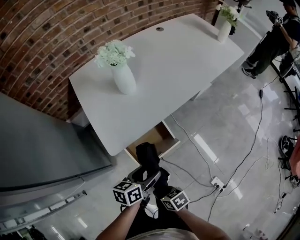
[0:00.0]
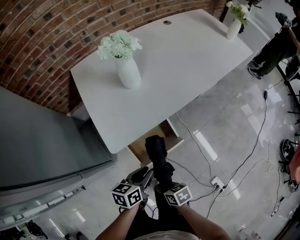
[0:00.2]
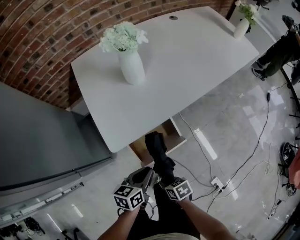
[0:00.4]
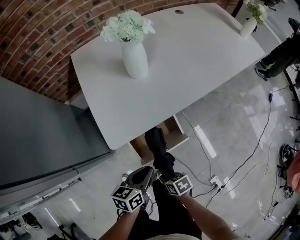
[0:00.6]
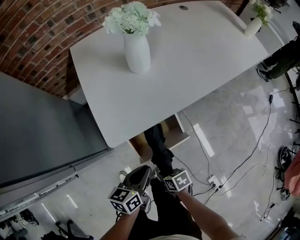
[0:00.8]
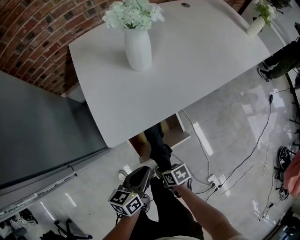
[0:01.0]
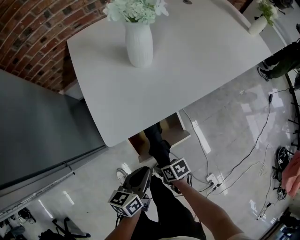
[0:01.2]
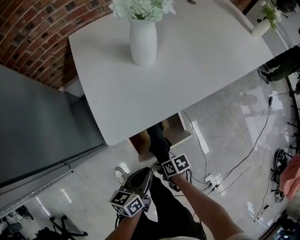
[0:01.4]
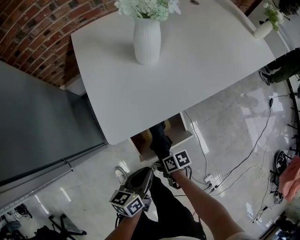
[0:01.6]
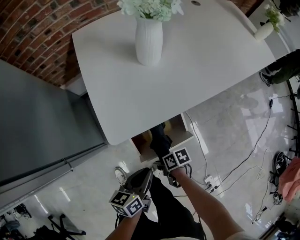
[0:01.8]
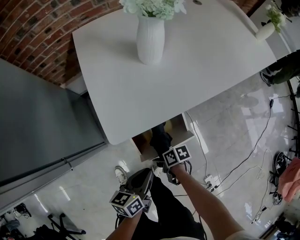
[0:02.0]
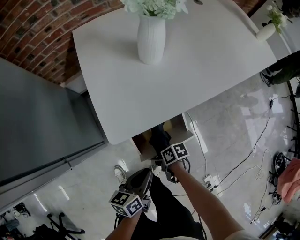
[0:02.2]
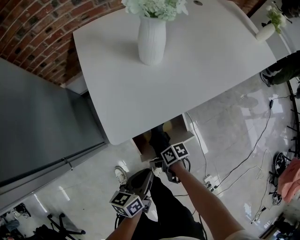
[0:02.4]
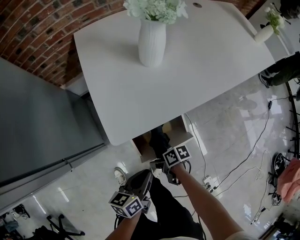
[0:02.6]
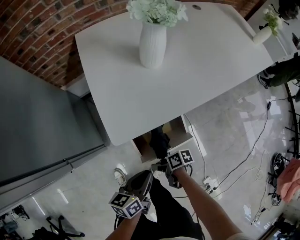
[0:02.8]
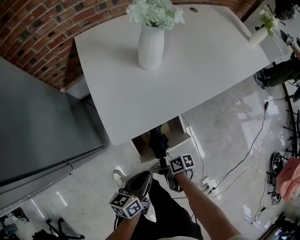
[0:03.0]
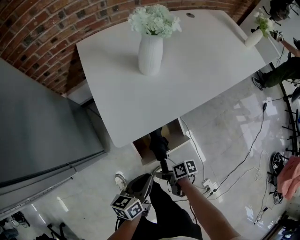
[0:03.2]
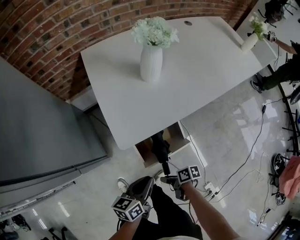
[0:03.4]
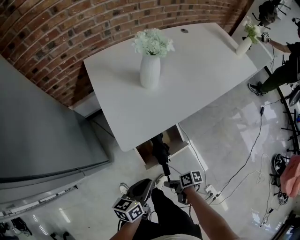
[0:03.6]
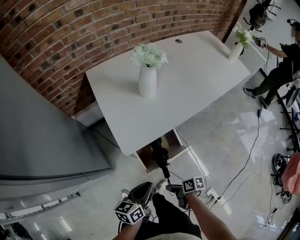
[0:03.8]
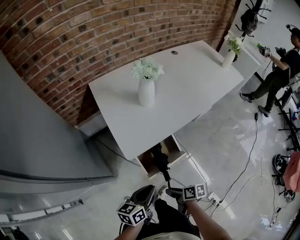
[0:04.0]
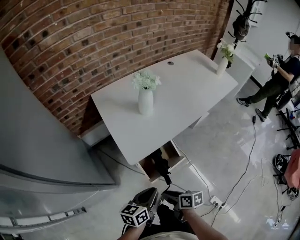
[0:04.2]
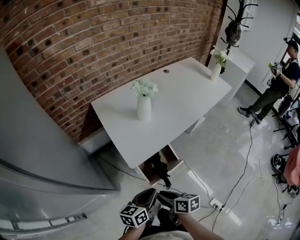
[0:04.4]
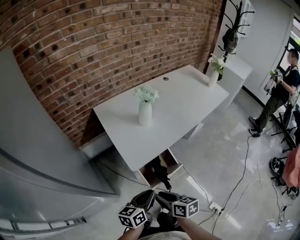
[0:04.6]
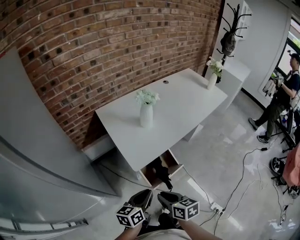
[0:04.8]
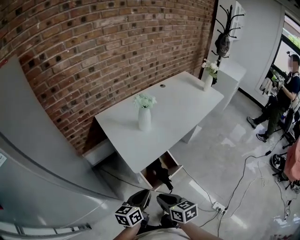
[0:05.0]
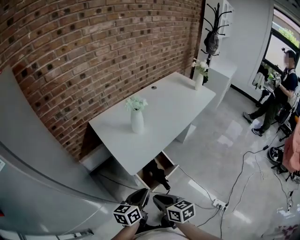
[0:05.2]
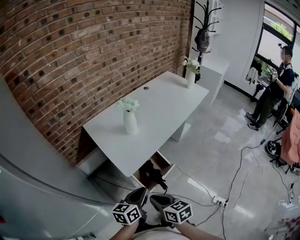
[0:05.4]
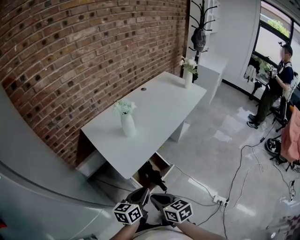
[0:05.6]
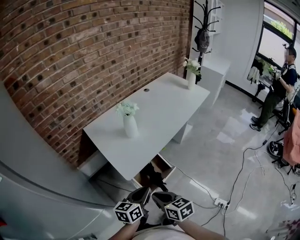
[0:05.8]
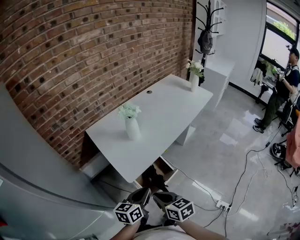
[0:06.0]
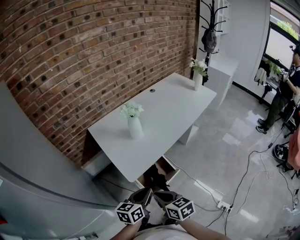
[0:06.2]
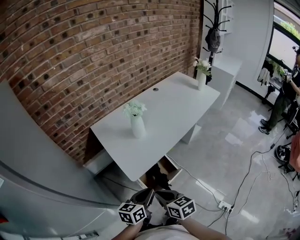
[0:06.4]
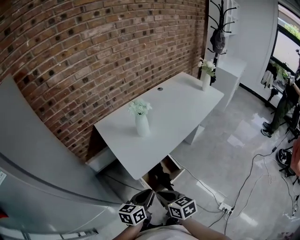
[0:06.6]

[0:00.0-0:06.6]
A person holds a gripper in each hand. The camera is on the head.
0:00.0 to 0:01.6: The right gripper shifts some 15 cm downward, and swivels some 30 degrees. The left gripper shifts some 5 cm downward, and closes.
0:01.6 to 0:03.2: The right gripper opens.
0:03.2 to 0:05.0: The right gripper travels upward by roughly 35 cm, swivels some 60 degrees, and closes its fingers; the left gripper shifts about 20 cm upward, and turns by some 20 degrees.
0:05.0 to 0:06.6: The left gripper ends up roughly 5 cm from where it was.

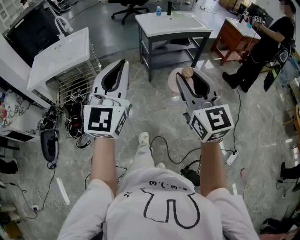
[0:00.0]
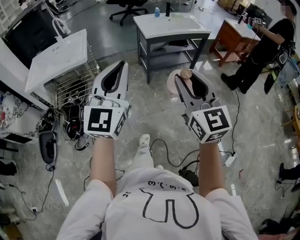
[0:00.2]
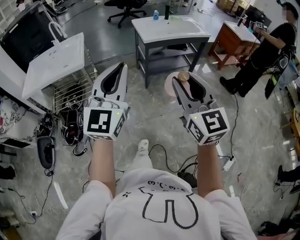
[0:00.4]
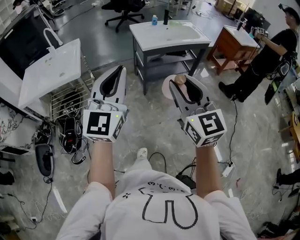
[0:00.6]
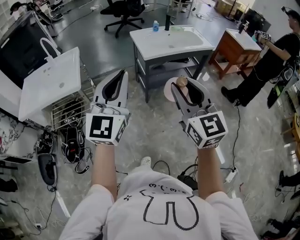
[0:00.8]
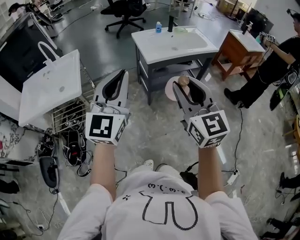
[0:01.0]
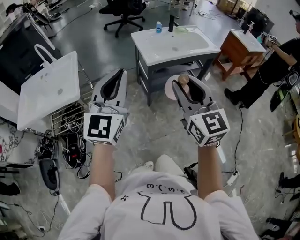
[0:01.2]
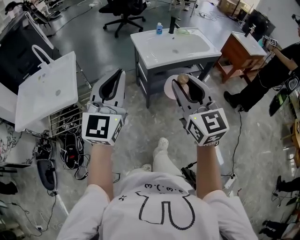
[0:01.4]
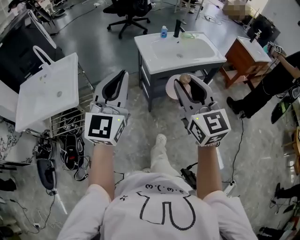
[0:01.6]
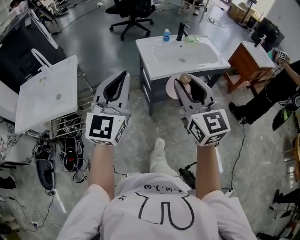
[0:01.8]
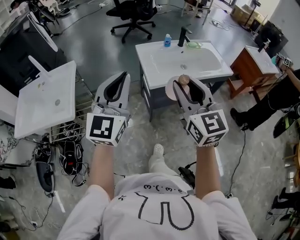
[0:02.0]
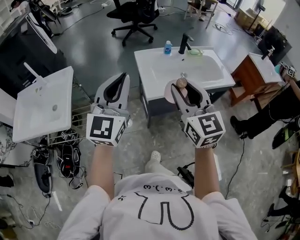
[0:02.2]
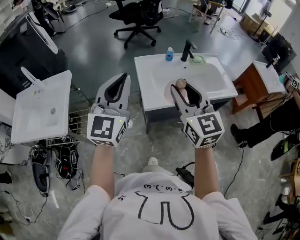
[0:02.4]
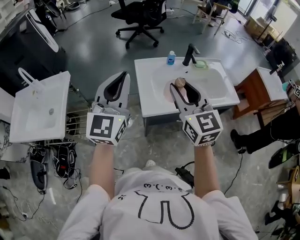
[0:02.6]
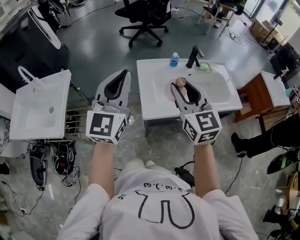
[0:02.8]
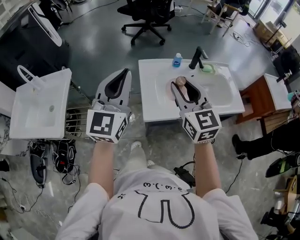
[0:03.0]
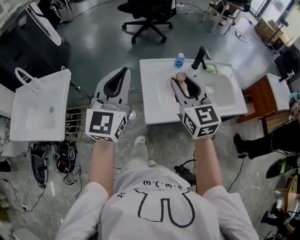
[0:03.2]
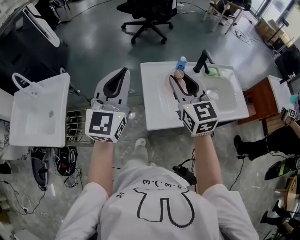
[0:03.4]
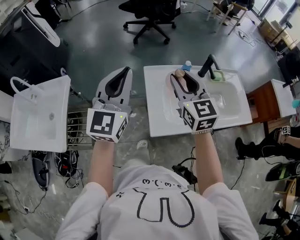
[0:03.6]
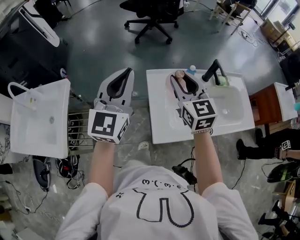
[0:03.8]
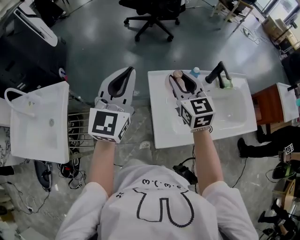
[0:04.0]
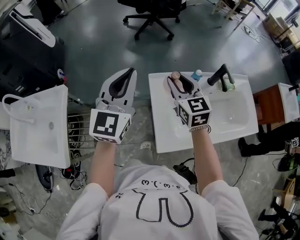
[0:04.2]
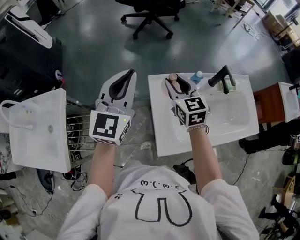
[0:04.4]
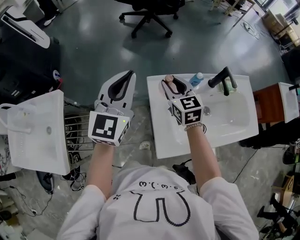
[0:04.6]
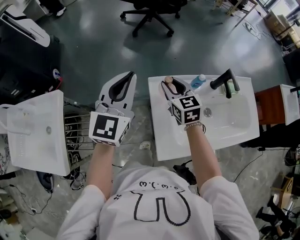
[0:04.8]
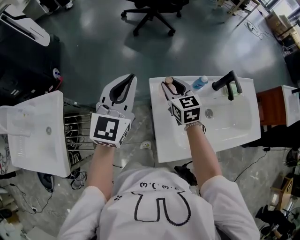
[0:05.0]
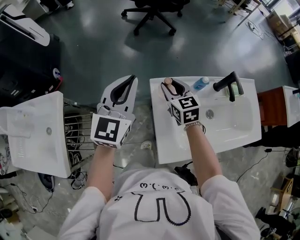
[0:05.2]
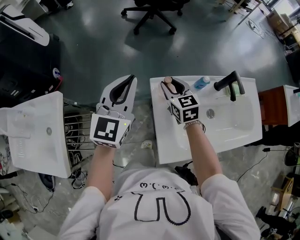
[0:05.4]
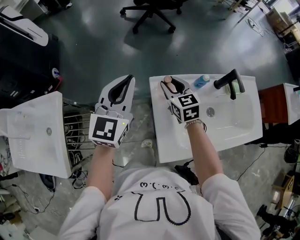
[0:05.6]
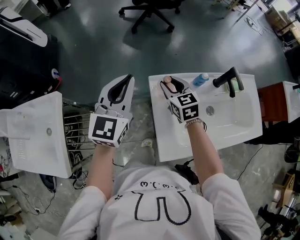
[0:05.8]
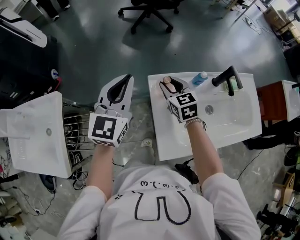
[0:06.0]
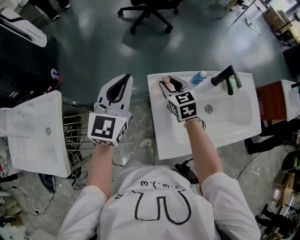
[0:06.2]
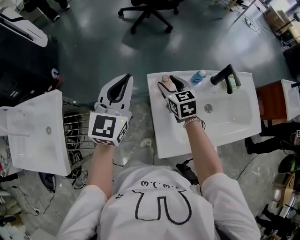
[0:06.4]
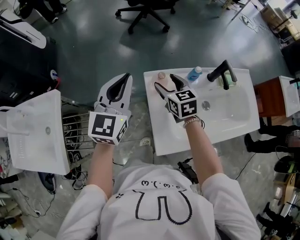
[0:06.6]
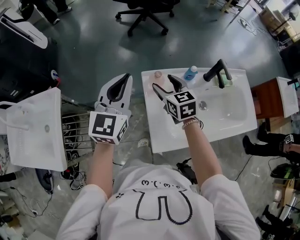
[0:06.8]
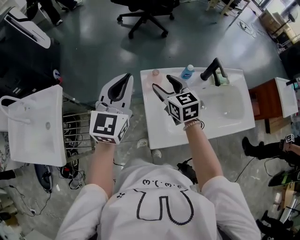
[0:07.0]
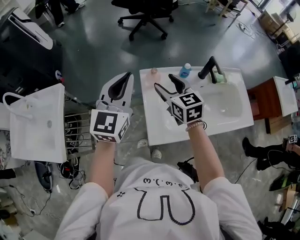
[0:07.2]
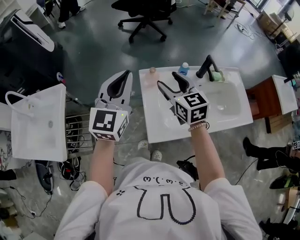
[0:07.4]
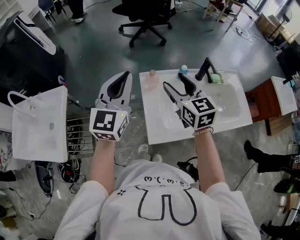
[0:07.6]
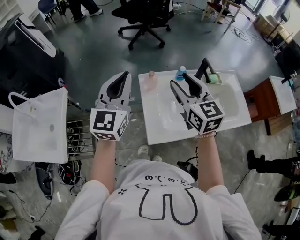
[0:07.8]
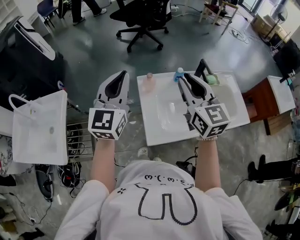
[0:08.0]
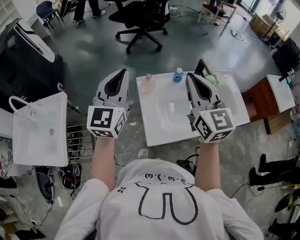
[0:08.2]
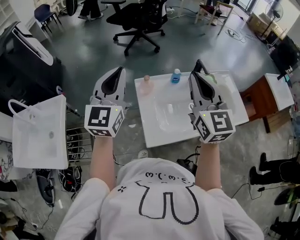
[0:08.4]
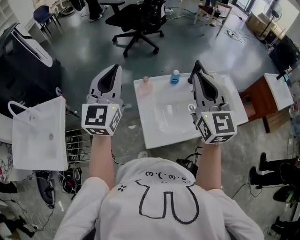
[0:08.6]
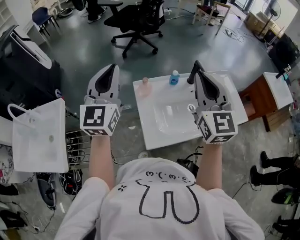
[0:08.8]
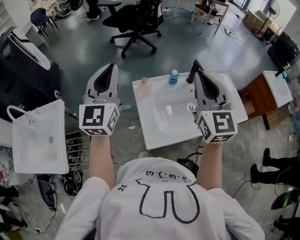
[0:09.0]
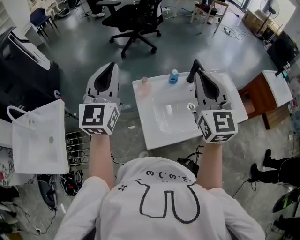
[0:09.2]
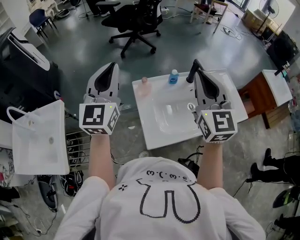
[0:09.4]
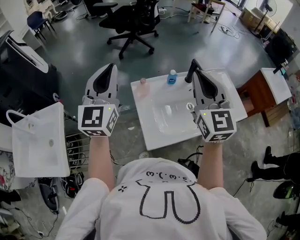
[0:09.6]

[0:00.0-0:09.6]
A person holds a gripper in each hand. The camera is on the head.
0:00.0 to 0:01.6: Both grippers move forward, approximately 40 cm.
0:01.6 to 0:03.2: Both grippers travel together forward, roughly 40 cm.
0:03.2 to 0:04.8: The right gripper travels forward and downward by roughly 30 cm, and changes its angle by approximately 20 degrees. Meanwhile the left gripper travels forward by roughly 25 cm.
0:04.8 to 0:06.4: There are only small adjustments of the grippers.
0:06.4 to 0:08.0: The right gripper heads upward and backward, covering roughly 30 cm, rotates about 30 degrees, and closes up. Meanwhile the left gripper is displaced backward and upward by approximately 15 cm.
0:08.0 to 0:09.6: The left gripper shifts by some 5 cm; the right gripper heads upward, covering about 5 cm.

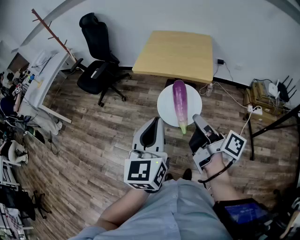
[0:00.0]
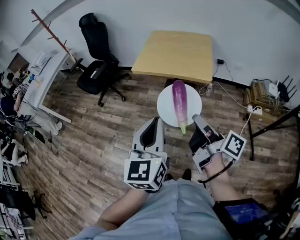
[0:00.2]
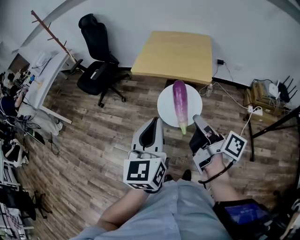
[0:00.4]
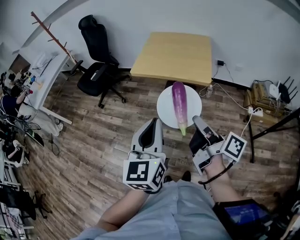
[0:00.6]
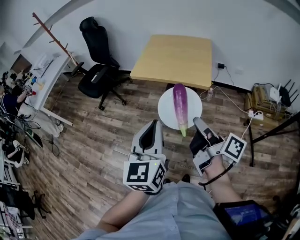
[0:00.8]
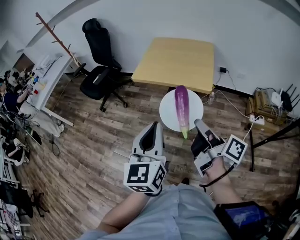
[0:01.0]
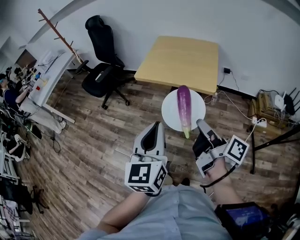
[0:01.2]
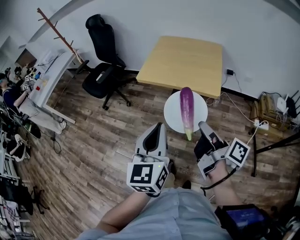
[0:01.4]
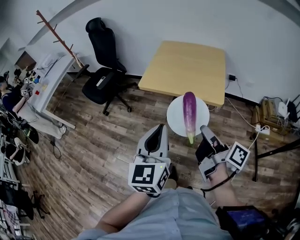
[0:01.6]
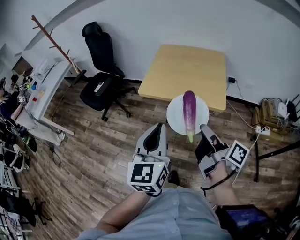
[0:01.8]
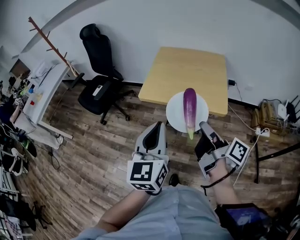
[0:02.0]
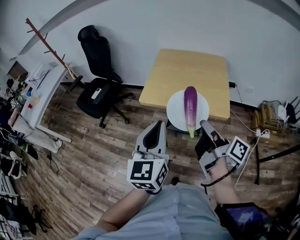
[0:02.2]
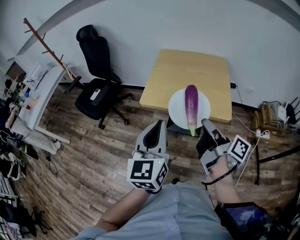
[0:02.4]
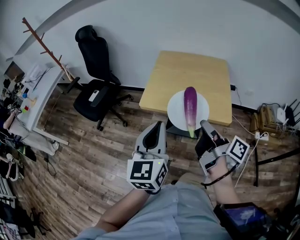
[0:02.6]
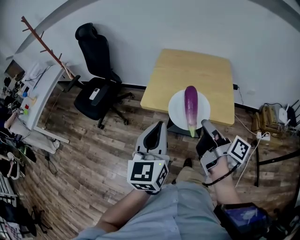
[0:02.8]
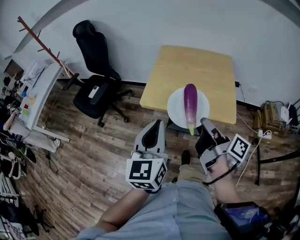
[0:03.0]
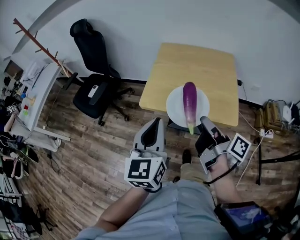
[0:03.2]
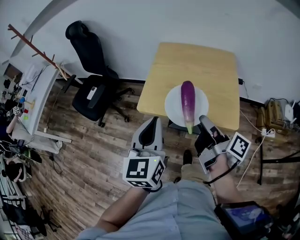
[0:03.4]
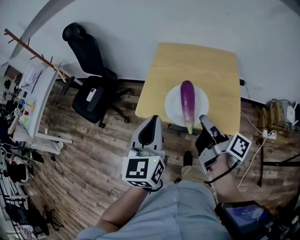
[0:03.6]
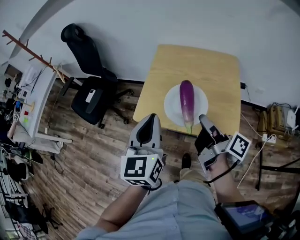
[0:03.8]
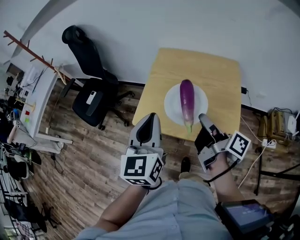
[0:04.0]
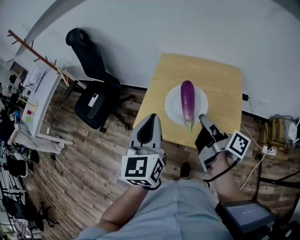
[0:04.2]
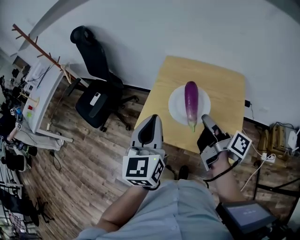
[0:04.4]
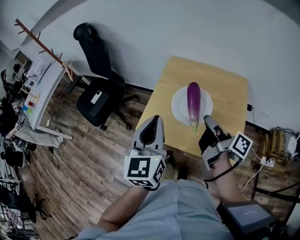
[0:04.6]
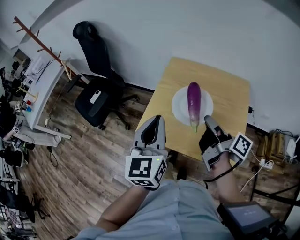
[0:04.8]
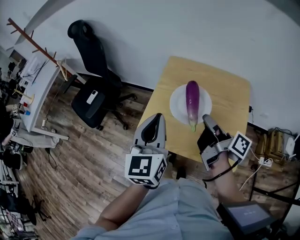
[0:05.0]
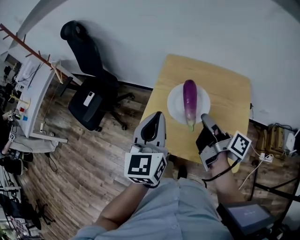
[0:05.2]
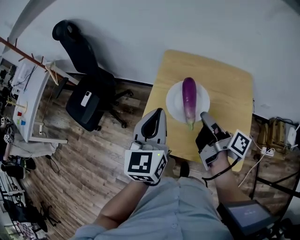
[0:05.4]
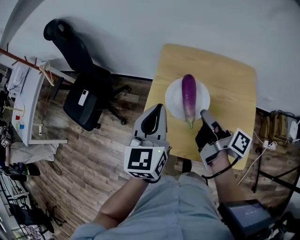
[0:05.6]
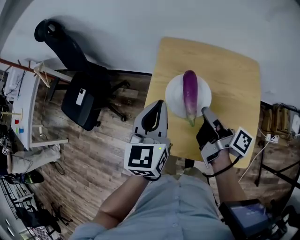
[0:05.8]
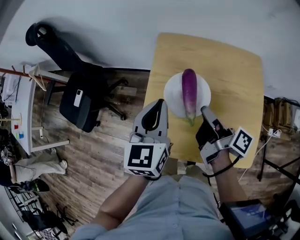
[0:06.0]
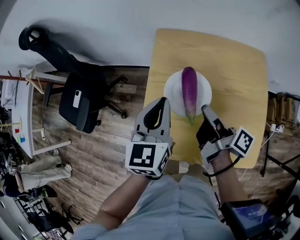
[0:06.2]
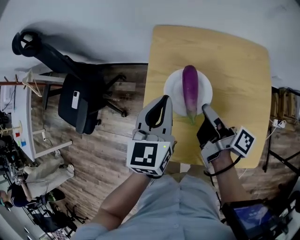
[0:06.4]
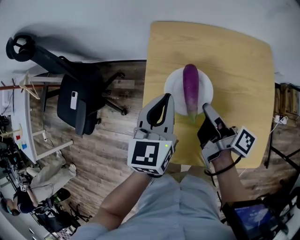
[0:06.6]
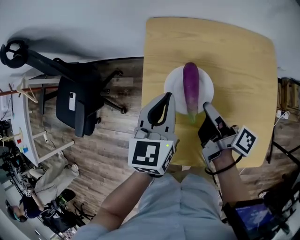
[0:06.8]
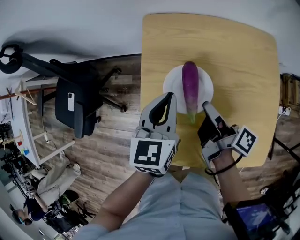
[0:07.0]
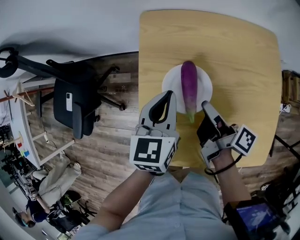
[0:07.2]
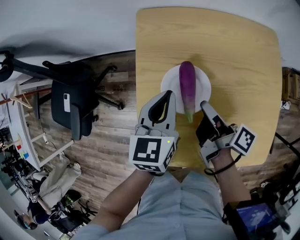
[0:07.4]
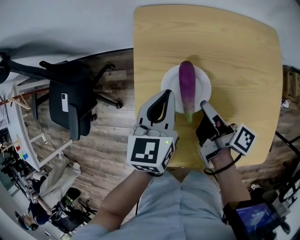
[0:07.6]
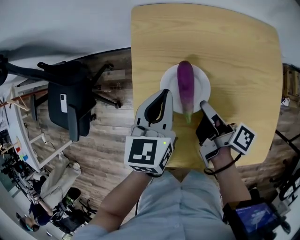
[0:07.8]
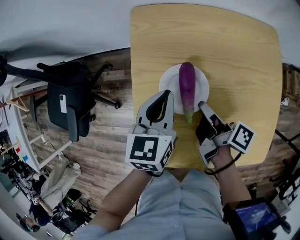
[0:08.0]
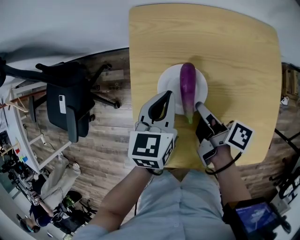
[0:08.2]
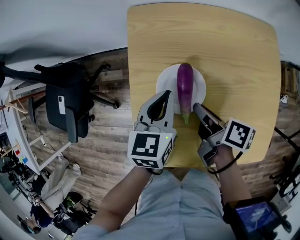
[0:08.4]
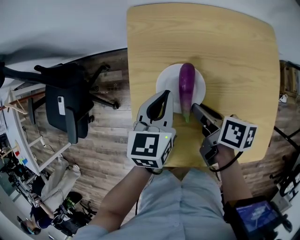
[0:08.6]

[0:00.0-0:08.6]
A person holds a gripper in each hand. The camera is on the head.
0:00.0 to 0:01.4: The left gripper shifts by some 10 cm.
0:01.4 to 0:02.8: The left gripper changes place by approximately 25 cm.
0:02.8 to 0:04.4: The left gripper ends up approximately 25 cm from where it was.
0:04.4 to 0:05.8: The left gripper ends up some 25 cm from where it was.
0:05.8 to 0:07.2: The left gripper is displaced downward by approximately 15 cm.
